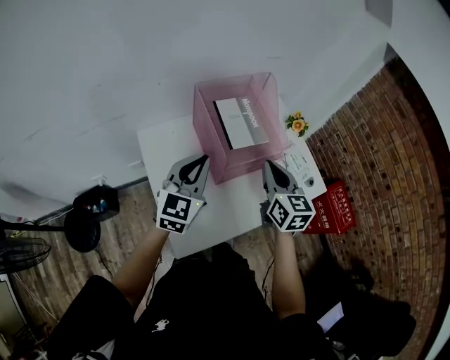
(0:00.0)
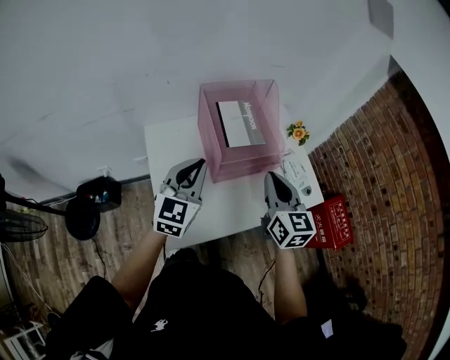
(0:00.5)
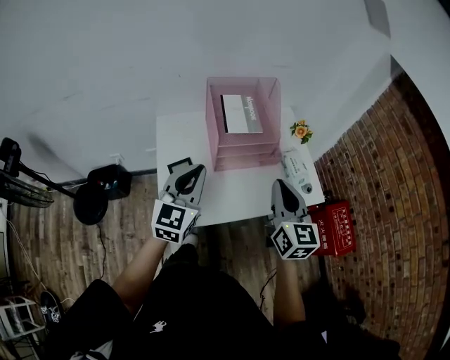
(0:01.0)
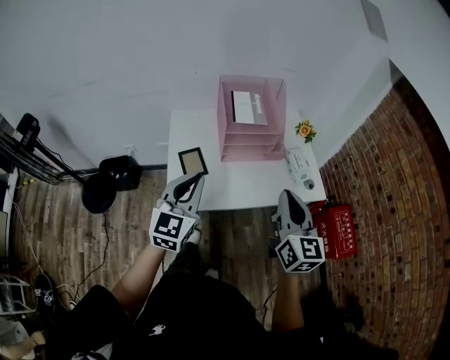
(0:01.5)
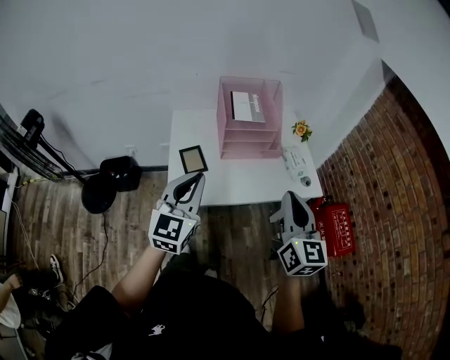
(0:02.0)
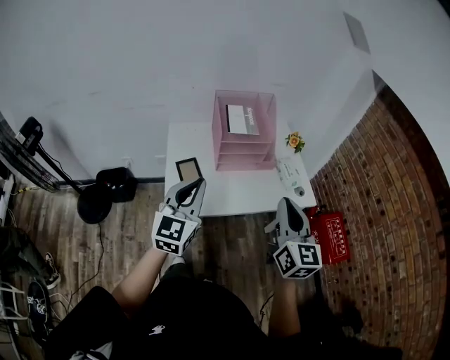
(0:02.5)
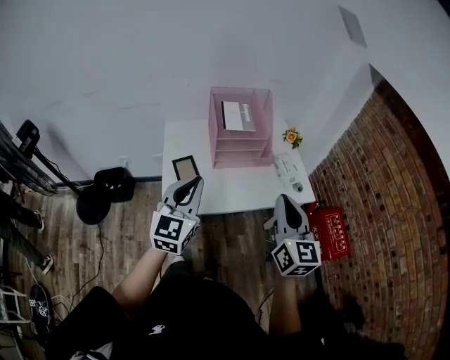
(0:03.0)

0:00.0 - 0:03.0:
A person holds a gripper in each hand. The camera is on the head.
0:00.0 - 0:01.5: The right gripper heads backward and to the right, covering roughly 25 cm; the left gripper shifts roughly 25 cm backward.
0:01.5 - 0:03.0: The right gripper moves about 5 cm.

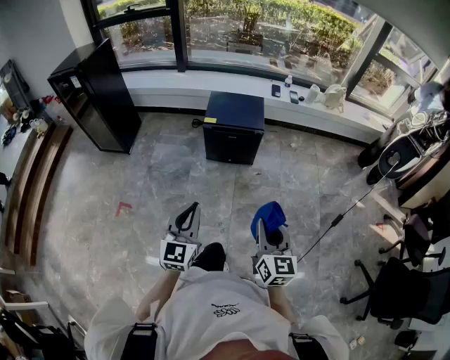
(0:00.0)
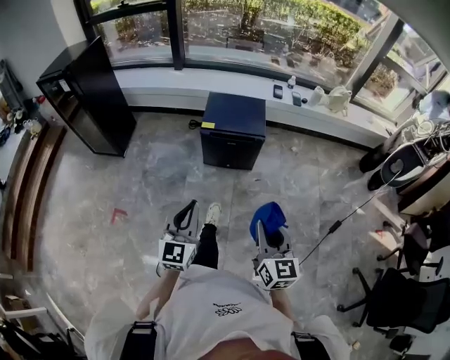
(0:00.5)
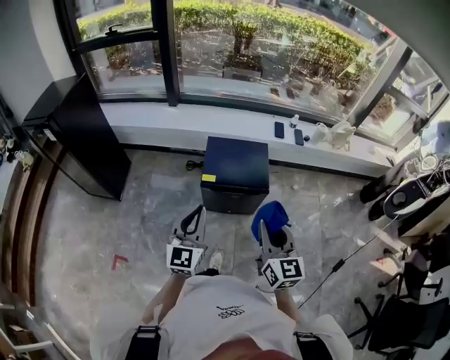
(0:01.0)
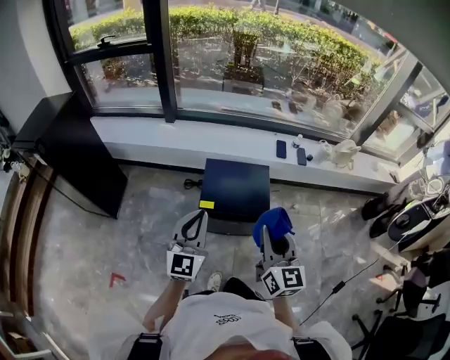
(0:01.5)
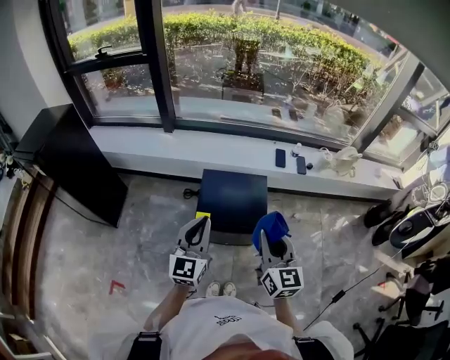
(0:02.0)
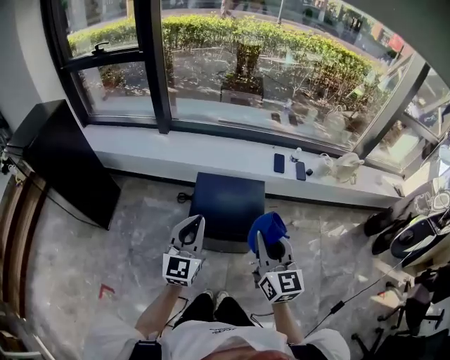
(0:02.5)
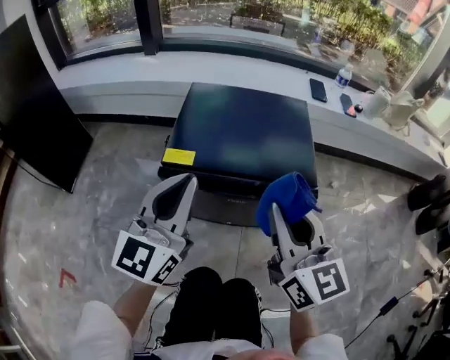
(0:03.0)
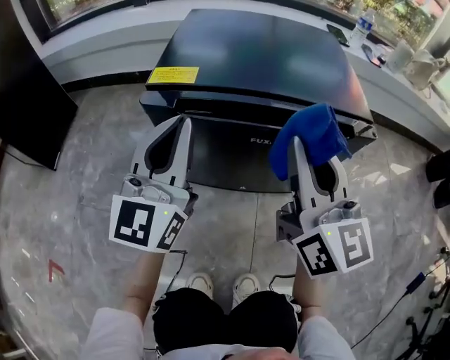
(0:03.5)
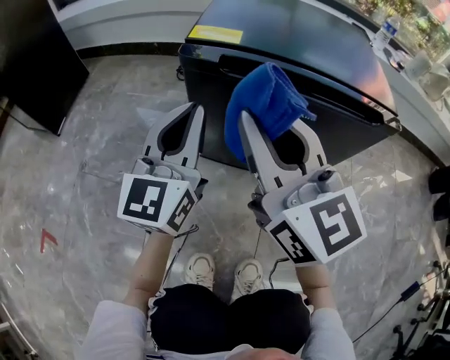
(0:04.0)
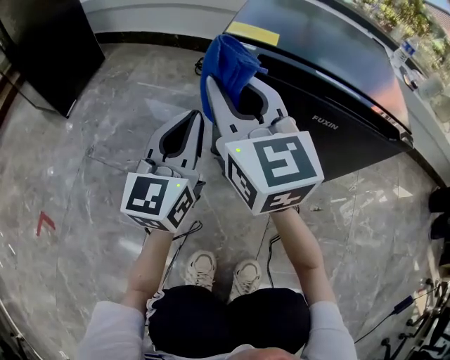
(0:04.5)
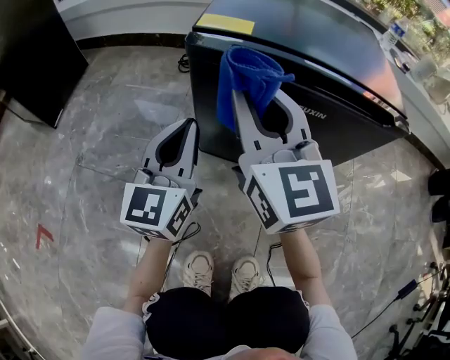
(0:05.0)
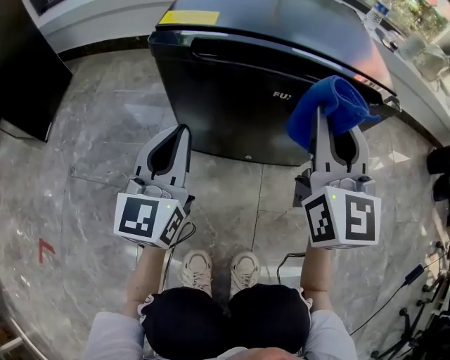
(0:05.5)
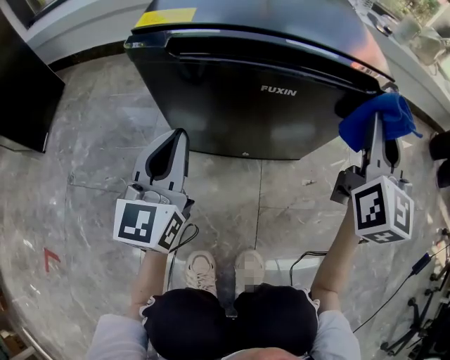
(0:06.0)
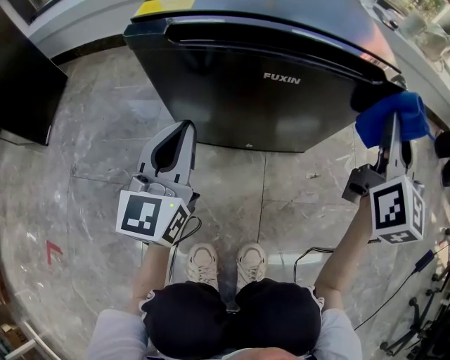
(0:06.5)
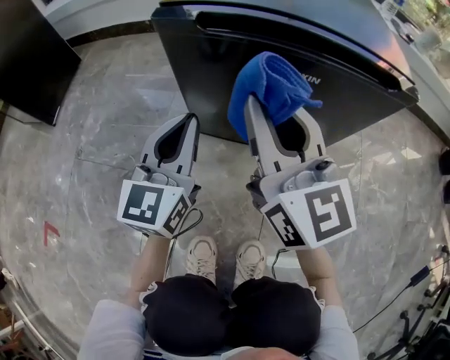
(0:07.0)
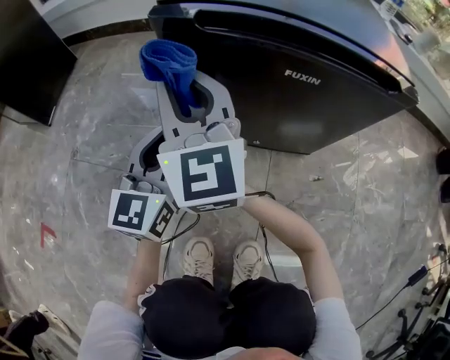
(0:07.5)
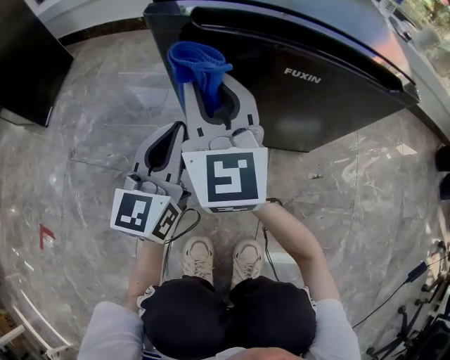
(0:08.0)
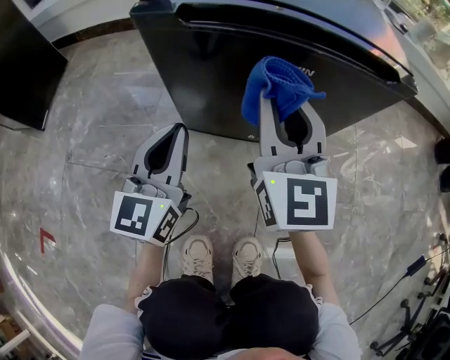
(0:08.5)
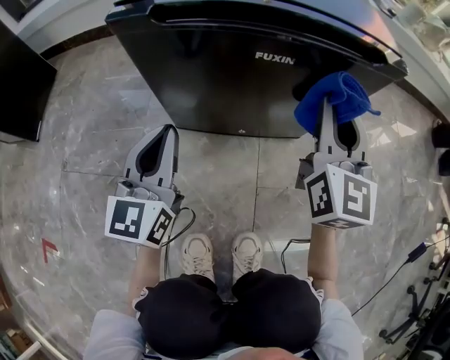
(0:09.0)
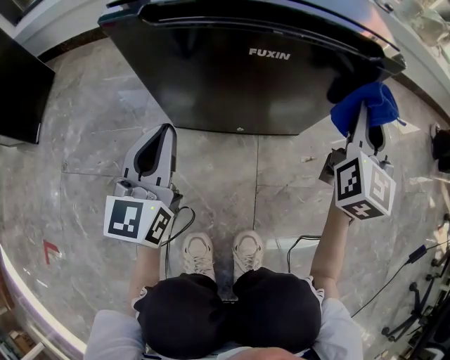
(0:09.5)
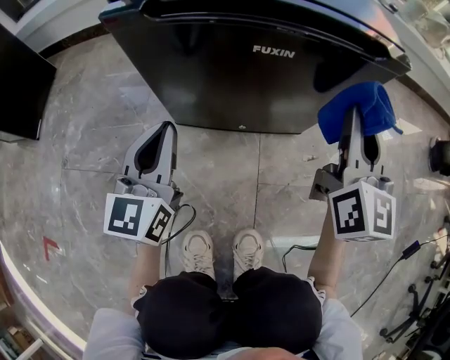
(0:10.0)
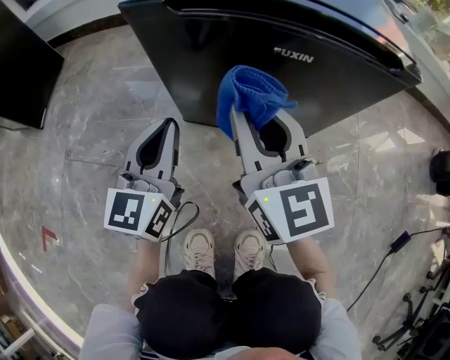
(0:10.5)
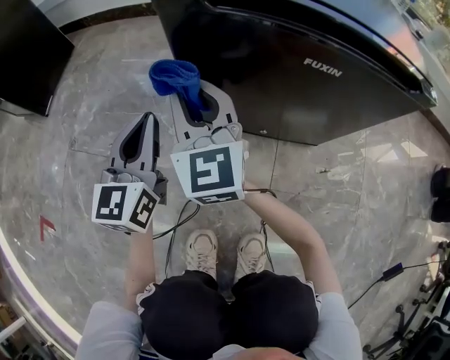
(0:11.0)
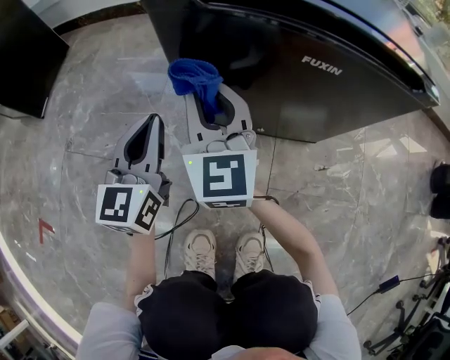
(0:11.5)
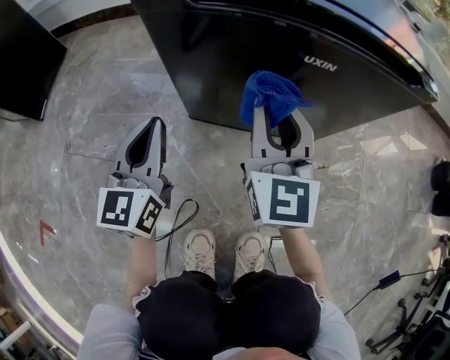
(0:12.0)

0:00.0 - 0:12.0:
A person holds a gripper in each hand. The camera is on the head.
0:00.0 - 0:02.0: Both grippers are carried forward, about 60 cm.
0:02.0 - 0:04.0: The two grippers go roughly 60 cm downward. The right gripper turns by some 30 degrees.
0:04.0 - 0:06.0: The left gripper heads downward, covering approximately 10 cm. Meanwhile the right gripper shifts by some 30 cm, and changes its angle by about 50 degrees.
0:06.0 - 0:08.0: The right gripper heads to the left, covering about 35 cm, and changes its angle by approximately 30 degrees.
0:08.0 - 0:10.0: The right gripper goes approximately 30 cm to the right, and rotates roughly 30 degrees.
0:10.0 - 0:12.0: The left gripper moves to the left, roughly 5 cm. Meanwhile the right gripper travels to the left by about 20 cm.

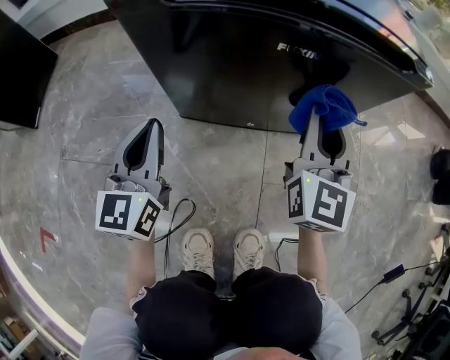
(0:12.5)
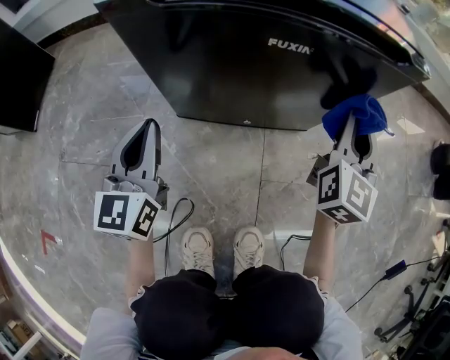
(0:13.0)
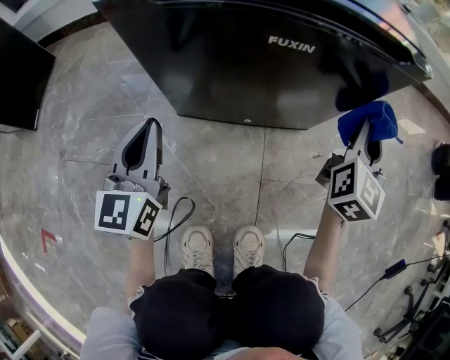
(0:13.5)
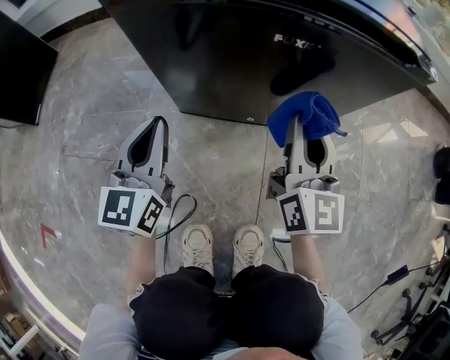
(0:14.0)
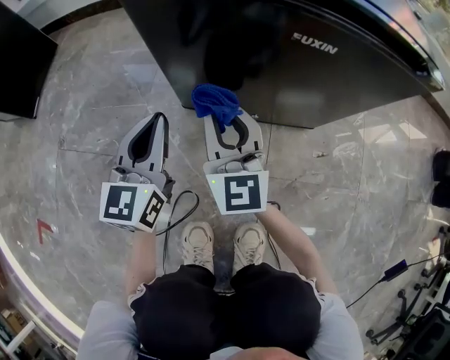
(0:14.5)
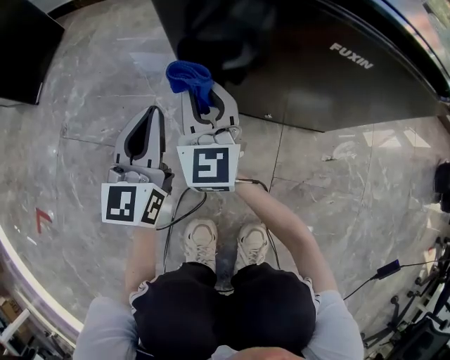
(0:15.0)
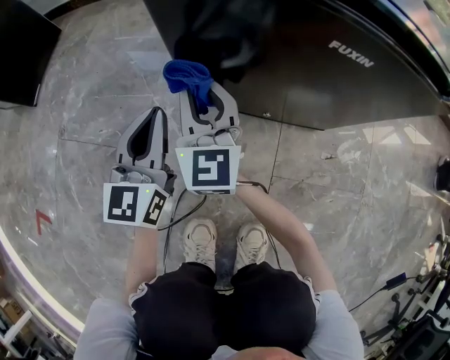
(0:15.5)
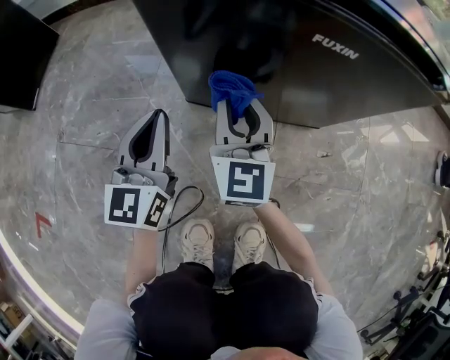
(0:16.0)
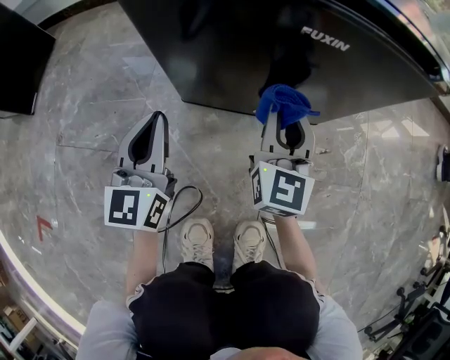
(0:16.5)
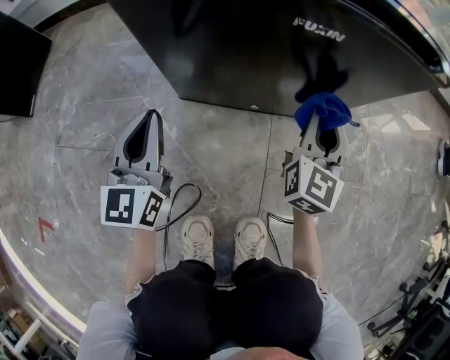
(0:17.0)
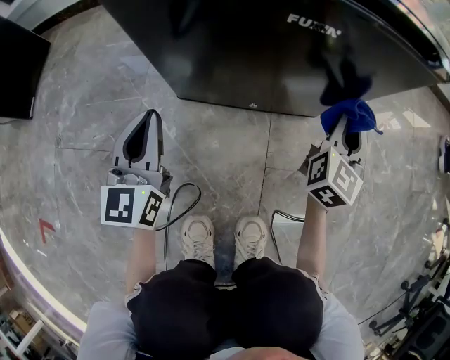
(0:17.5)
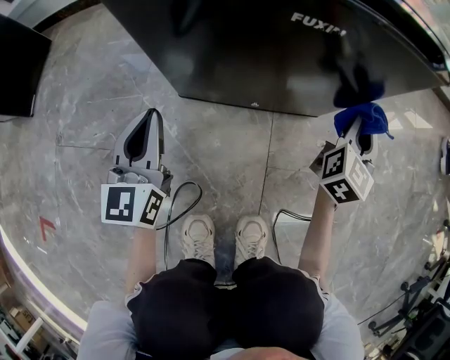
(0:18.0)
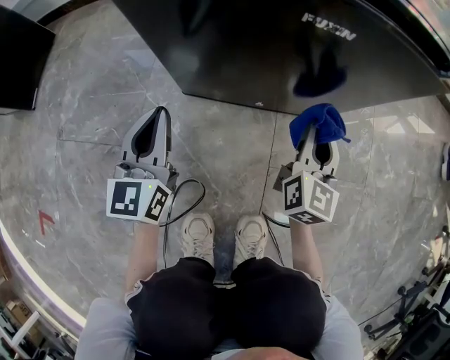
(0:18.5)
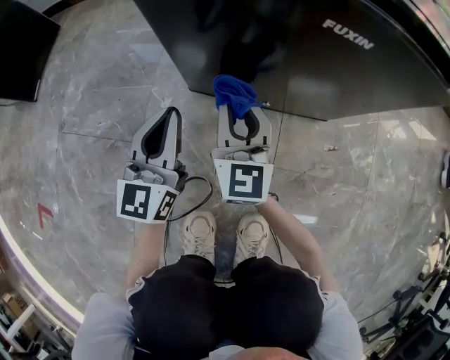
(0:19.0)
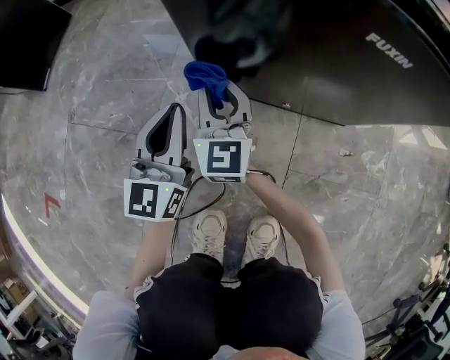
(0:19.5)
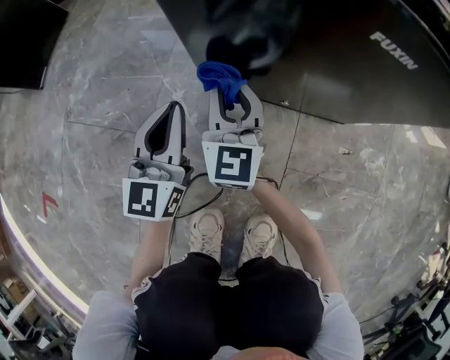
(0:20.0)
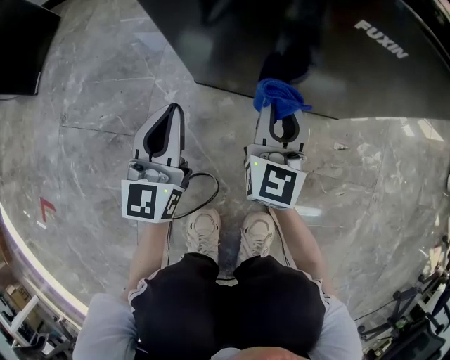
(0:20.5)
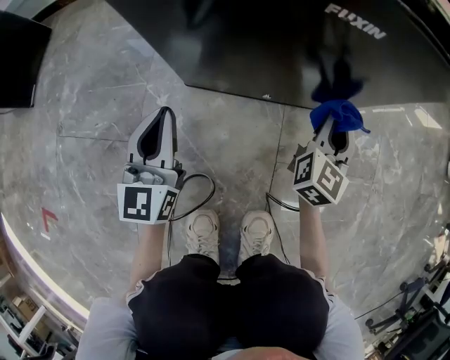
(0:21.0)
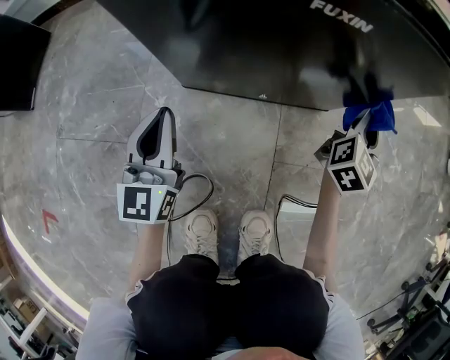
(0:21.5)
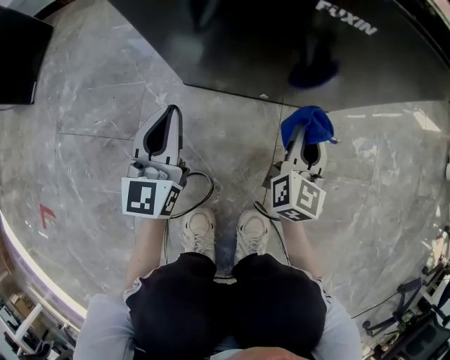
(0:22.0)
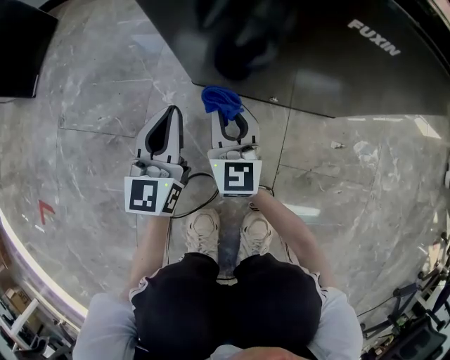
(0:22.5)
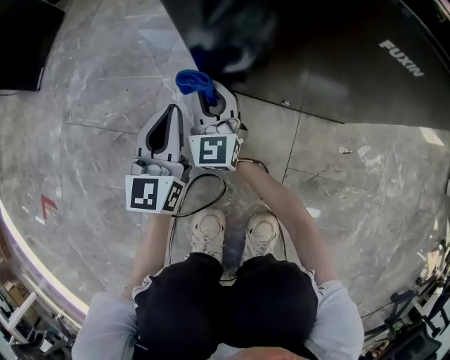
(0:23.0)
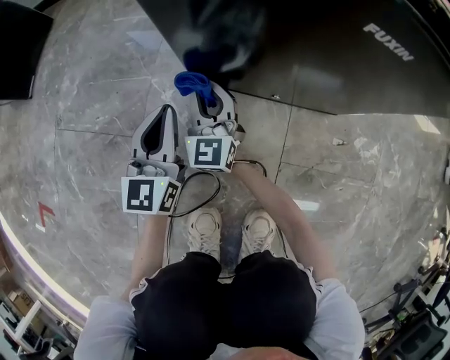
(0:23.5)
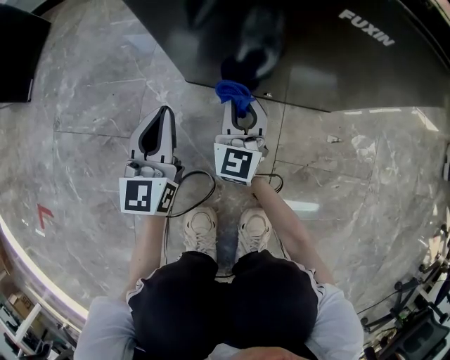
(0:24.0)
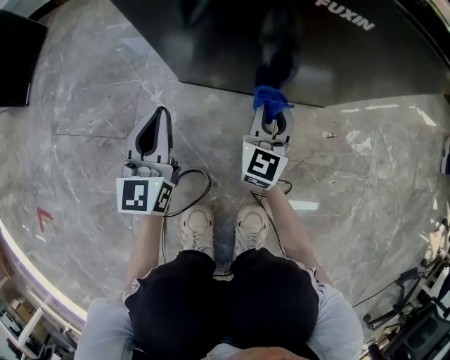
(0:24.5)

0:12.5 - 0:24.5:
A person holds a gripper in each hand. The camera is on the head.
0:12.5 - 0:14.5: The right gripper heads to the left, covering approximately 20 cm, and swivels roughly 30 degrees.
0:14.5 - 0:16.5: The right gripper heads to the right, covering roughly 10 cm, and turns by approximately 20 degrees.
0:16.5 - 0:18.5: The right gripper is displaced to the right by some 10 cm.
0:18.5 - 0:20.5: The right gripper is displaced to the left by about 15 cm.
0:22.5 - 0:24.5: The right gripper goes some 15 cm to the right, and changes its angle by some 30 degrees.
